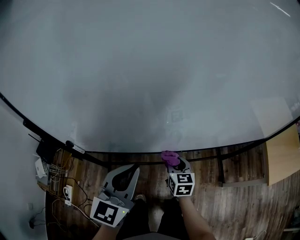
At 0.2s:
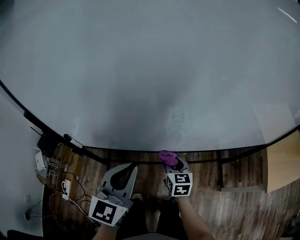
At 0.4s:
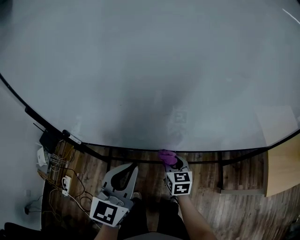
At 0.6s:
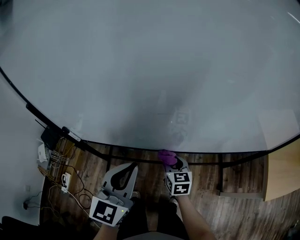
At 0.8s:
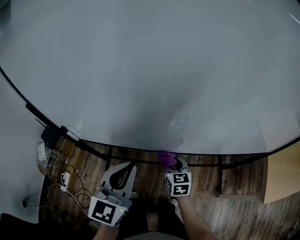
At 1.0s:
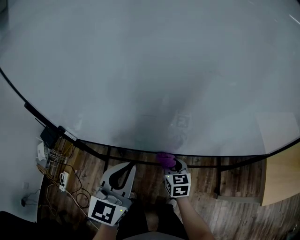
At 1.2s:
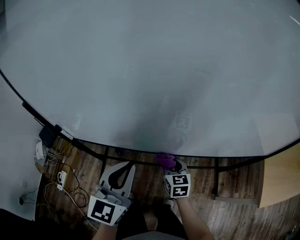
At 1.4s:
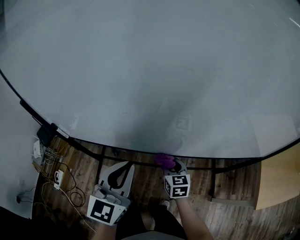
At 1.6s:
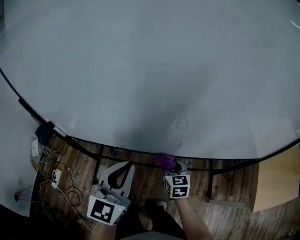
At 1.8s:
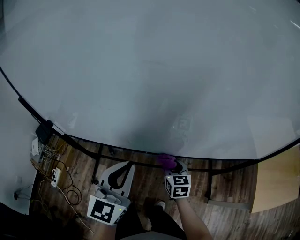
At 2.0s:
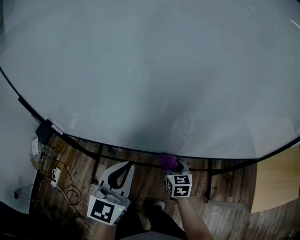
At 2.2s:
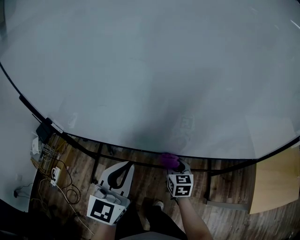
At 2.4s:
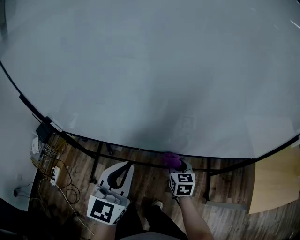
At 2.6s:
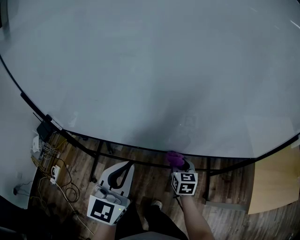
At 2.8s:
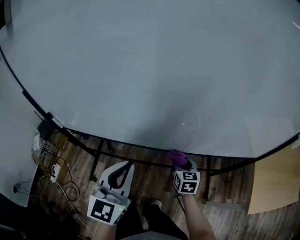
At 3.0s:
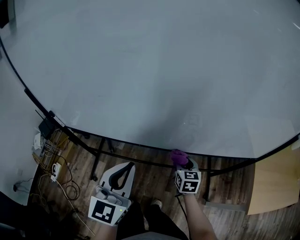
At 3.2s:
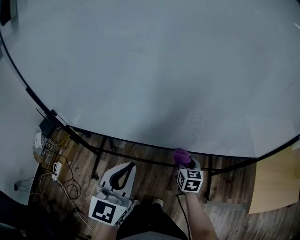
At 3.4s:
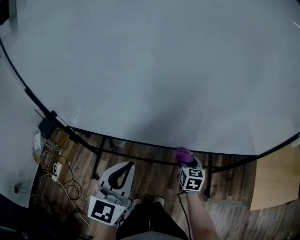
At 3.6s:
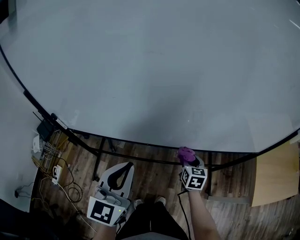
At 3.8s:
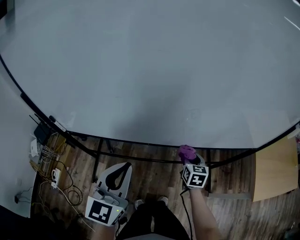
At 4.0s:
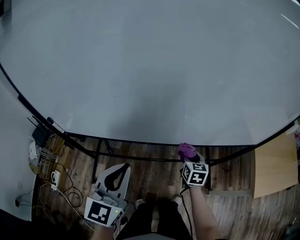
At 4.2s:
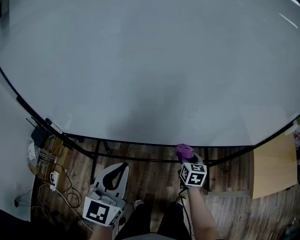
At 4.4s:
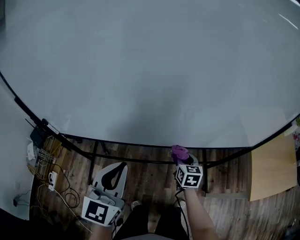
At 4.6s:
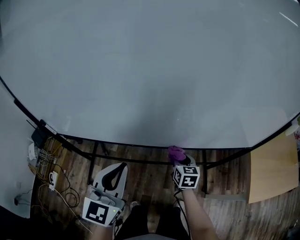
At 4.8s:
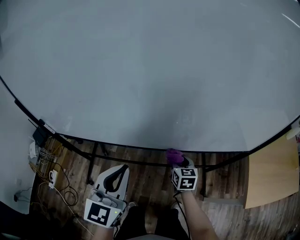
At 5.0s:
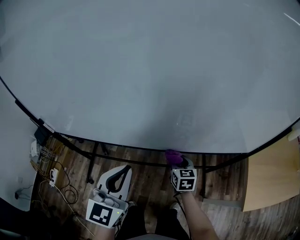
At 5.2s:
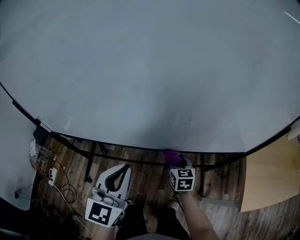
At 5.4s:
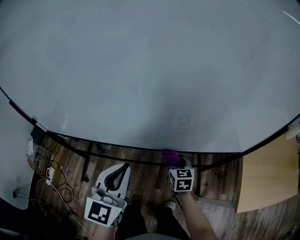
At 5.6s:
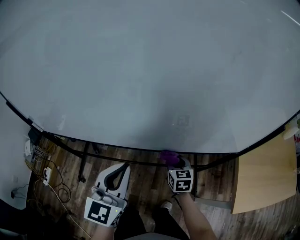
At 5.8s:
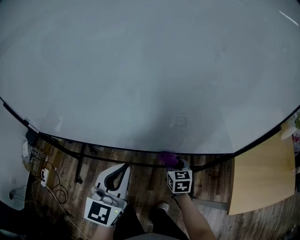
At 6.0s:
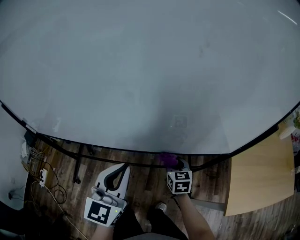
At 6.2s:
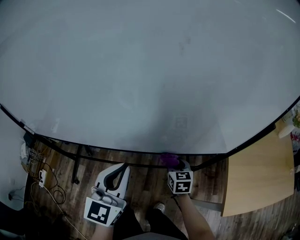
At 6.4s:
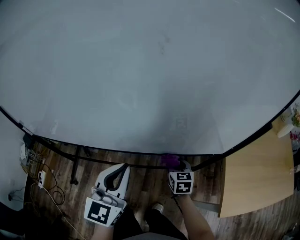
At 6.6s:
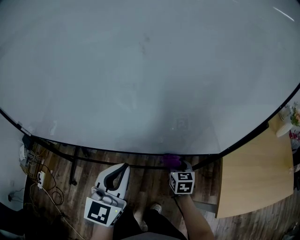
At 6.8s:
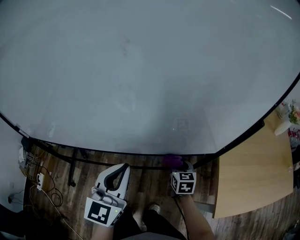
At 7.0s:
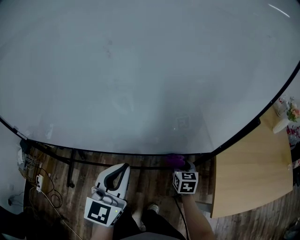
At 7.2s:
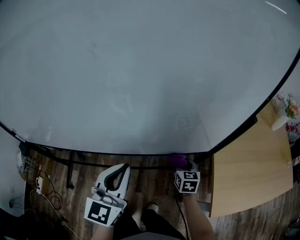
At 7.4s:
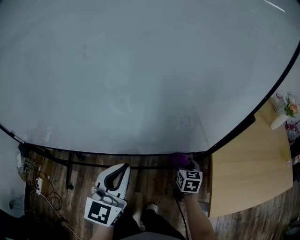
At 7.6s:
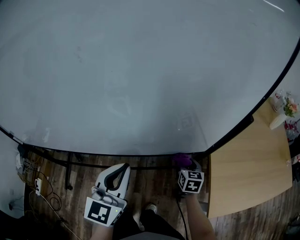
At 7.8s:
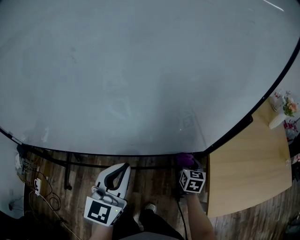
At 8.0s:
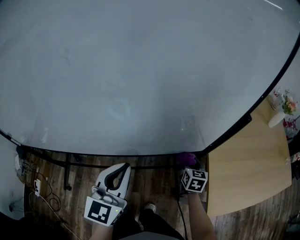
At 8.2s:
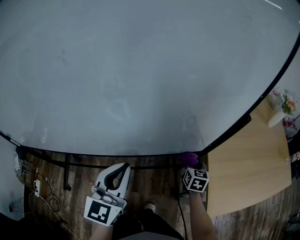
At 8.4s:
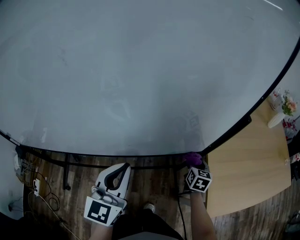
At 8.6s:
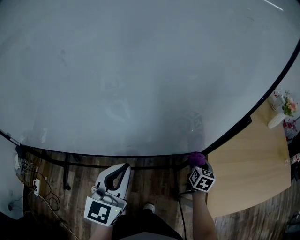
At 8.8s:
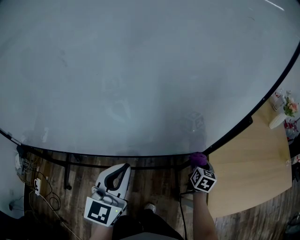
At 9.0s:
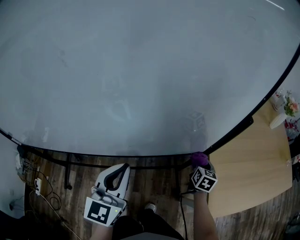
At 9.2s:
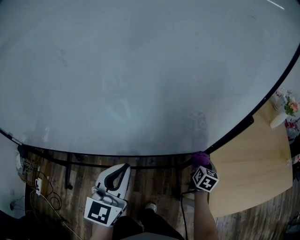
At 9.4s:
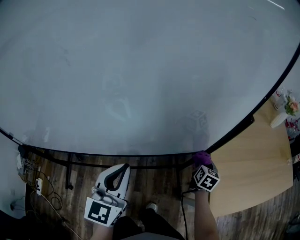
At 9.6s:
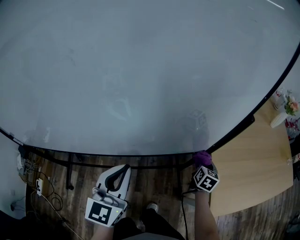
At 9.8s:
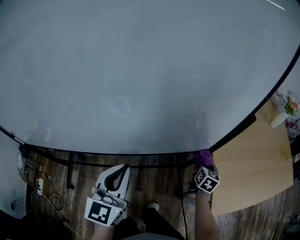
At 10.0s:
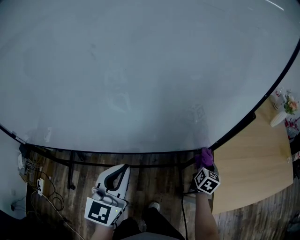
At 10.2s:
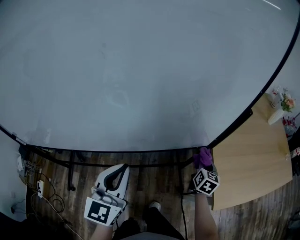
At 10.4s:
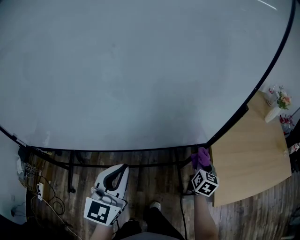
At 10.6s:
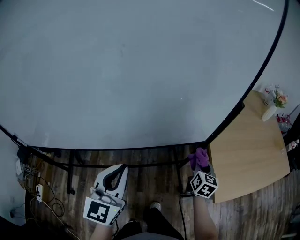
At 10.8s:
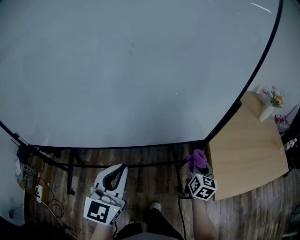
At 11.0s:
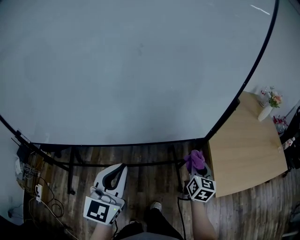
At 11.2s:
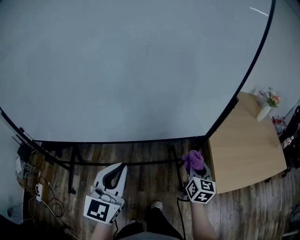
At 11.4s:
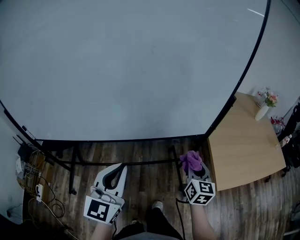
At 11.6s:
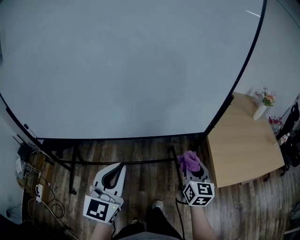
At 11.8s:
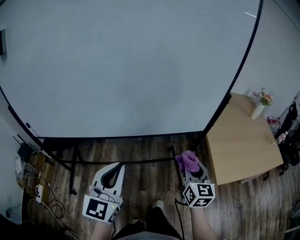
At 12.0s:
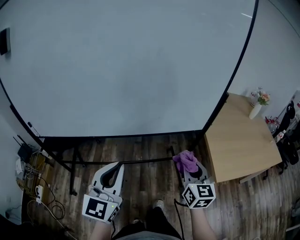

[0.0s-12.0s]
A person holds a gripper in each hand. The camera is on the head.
0.0s to 1.6s: The grippers both shift to the right by about 10 cm.
1.6s to 3.0s: The left gripper goes about 5 cm to the right, while the right gripper travels to the right by roughly 10 cm.
4.4s to 6.0s: The two grippers go about 20 cm to the right.
6.0s to 7.6s: The right gripper goes approximately 20 cm to the right. Meanwhile the left gripper shifts approximately 15 cm to the right.
7.6s to 9.0s: The right gripper moves to the right, approximately 10 cm.
9.0s to 10.4s: The right gripper is displaced backward and upward by some 10 cm. The left gripper is displaced backward by some 5 cm.
10.4s to 12.0s: The right gripper shifts roughly 30 cm backward, upward and to the left, and turns by approximately 30 degrees. Meanwhile the left gripper moves backward, roughly 20 cm.

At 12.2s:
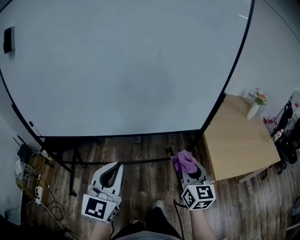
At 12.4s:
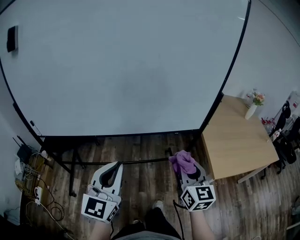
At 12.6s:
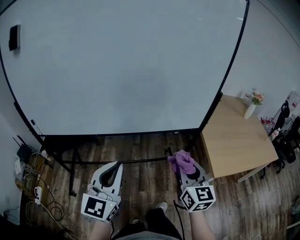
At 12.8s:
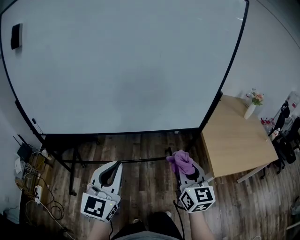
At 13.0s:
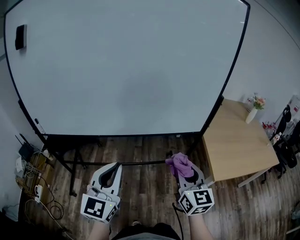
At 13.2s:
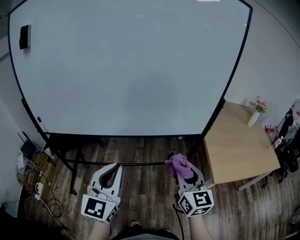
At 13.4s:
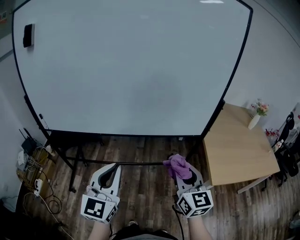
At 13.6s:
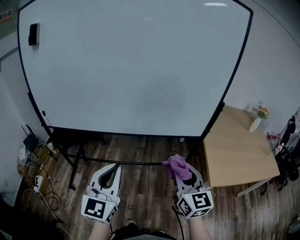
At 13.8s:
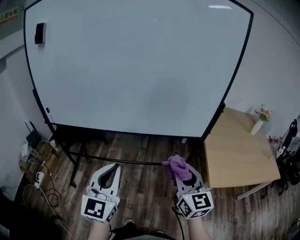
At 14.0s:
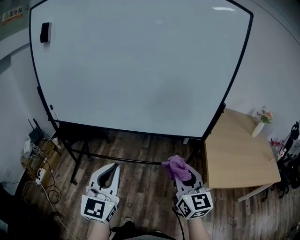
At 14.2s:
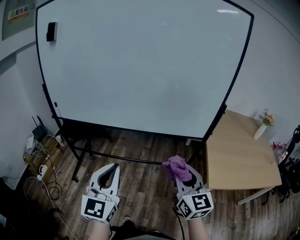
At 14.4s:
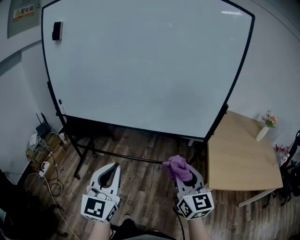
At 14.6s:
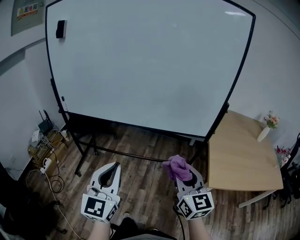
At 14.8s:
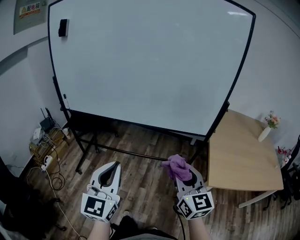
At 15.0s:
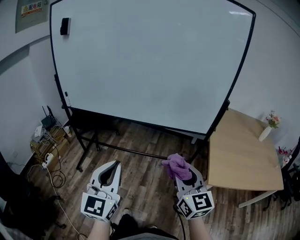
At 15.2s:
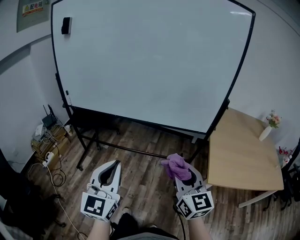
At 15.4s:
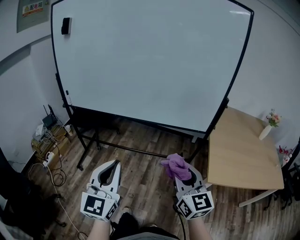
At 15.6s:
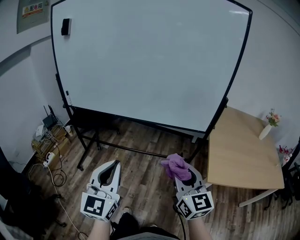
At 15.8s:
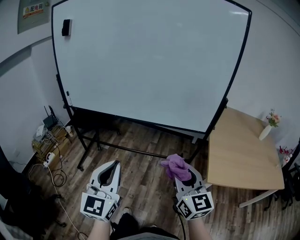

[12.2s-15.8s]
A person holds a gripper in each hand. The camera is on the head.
12.2s to 14.0s: The left gripper shifts about 10 cm backward. Meanwhile the right gripper is displaced backward and upward by approximately 10 cm.
14.0s to 15.8s: The two grippers go about 10 cm backward.

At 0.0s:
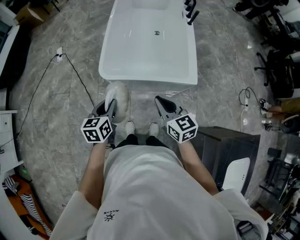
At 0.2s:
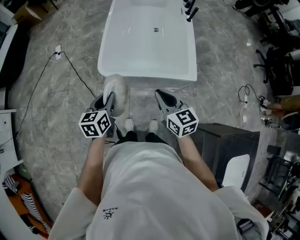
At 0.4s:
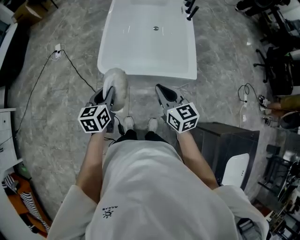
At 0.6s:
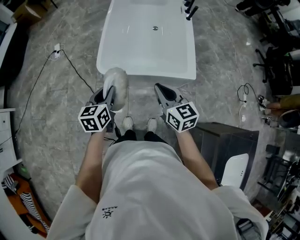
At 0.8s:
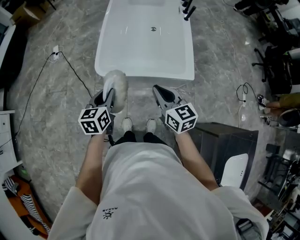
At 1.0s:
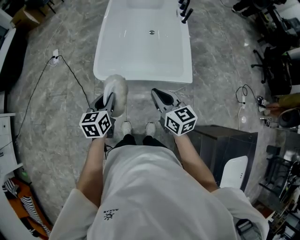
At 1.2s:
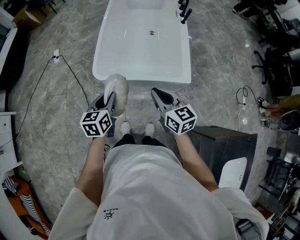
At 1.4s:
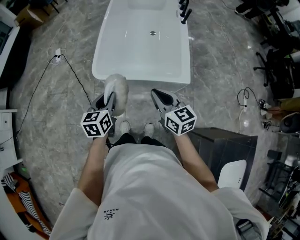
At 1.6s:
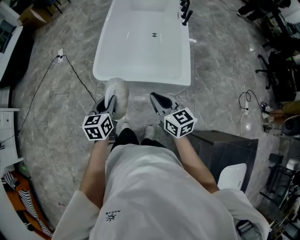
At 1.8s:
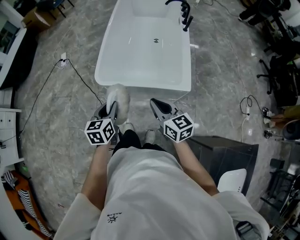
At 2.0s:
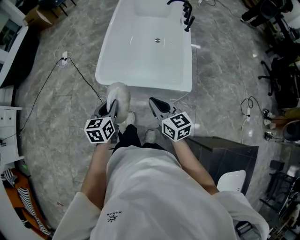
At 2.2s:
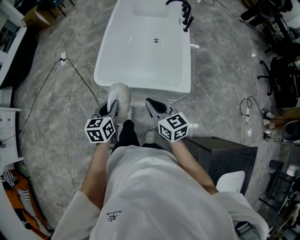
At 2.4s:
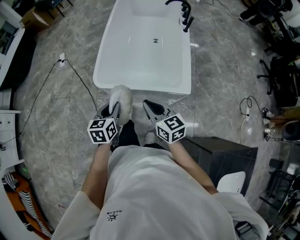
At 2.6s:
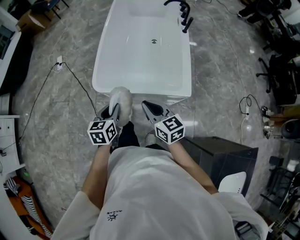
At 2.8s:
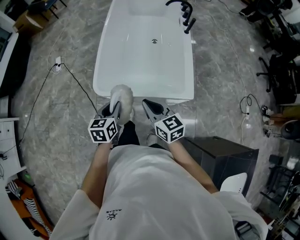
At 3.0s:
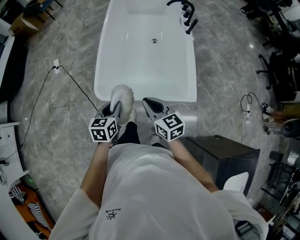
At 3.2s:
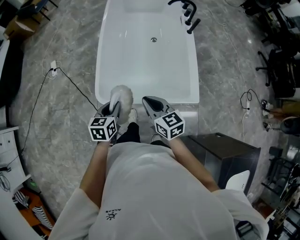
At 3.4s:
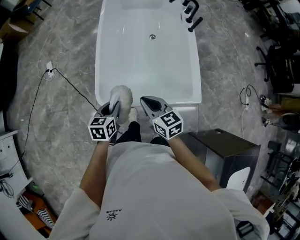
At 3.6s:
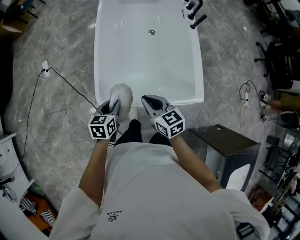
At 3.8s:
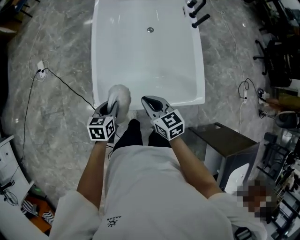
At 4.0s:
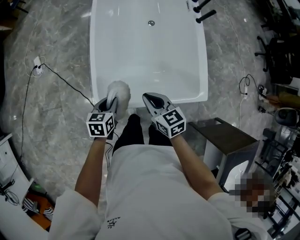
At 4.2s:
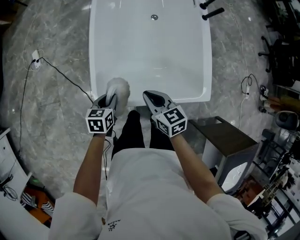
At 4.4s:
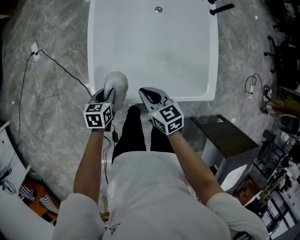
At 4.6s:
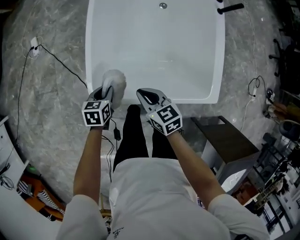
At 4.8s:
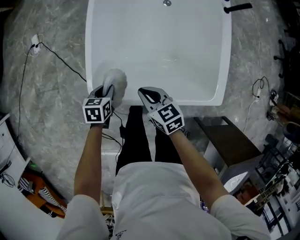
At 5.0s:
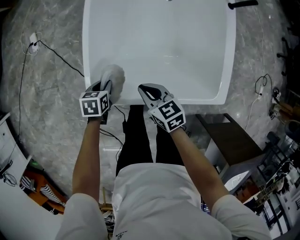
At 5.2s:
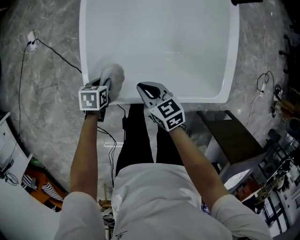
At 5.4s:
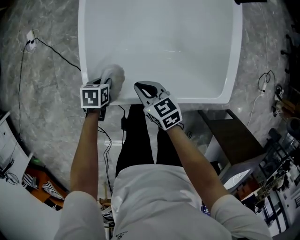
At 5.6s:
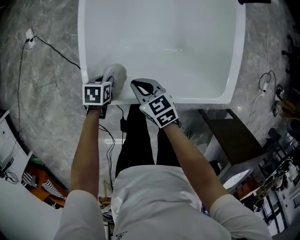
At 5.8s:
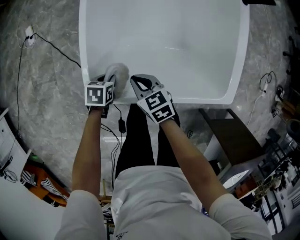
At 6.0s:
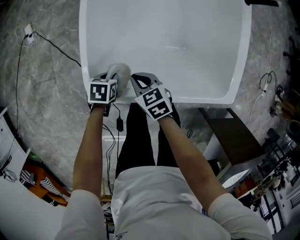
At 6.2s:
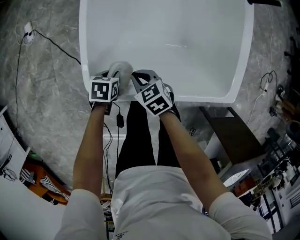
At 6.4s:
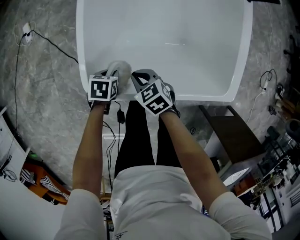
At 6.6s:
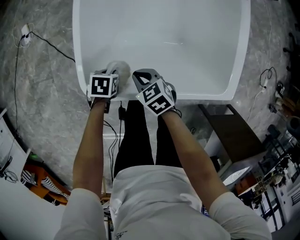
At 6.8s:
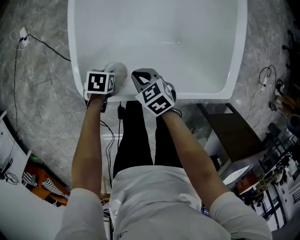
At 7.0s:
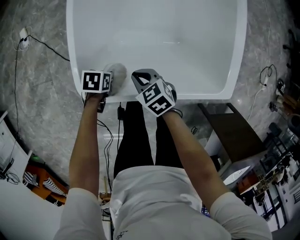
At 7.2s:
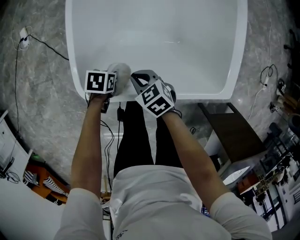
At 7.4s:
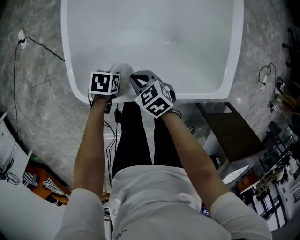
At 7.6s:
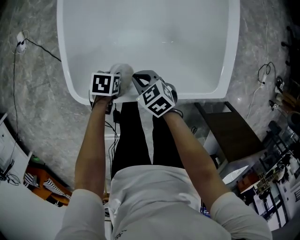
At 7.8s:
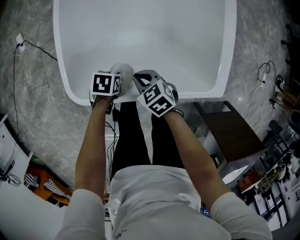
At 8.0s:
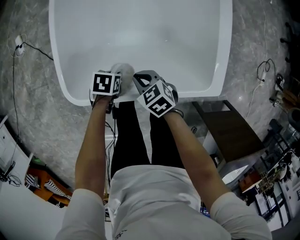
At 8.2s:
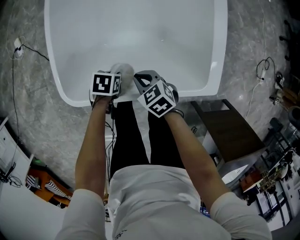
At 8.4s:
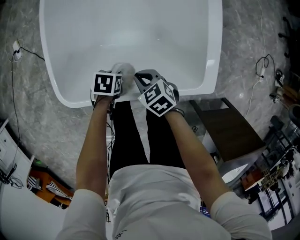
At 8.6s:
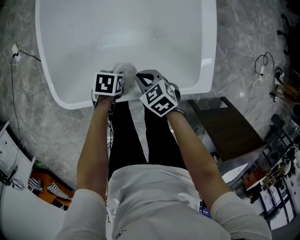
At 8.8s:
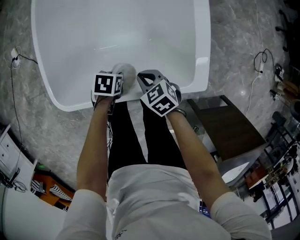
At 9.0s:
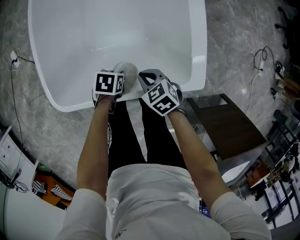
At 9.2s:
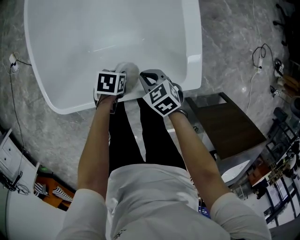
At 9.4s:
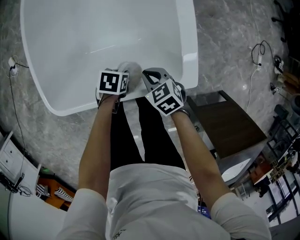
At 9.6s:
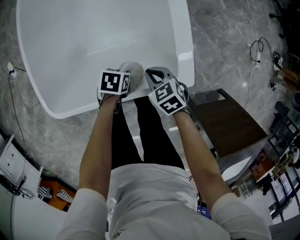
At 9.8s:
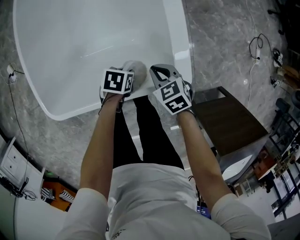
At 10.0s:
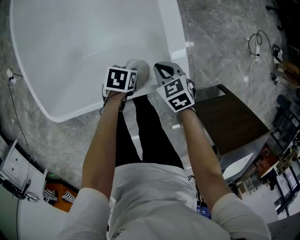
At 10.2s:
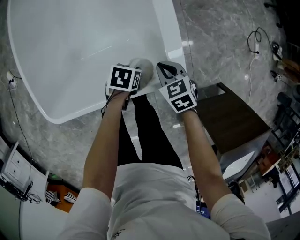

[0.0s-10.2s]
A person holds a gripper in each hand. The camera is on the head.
0.0s to 1.4s: The right gripper shifts by about 5 cm.
1.4s to 3.0s: The right gripper moves some 15 cm.
3.0s to 4.4s: The right gripper shifts about 15 cm downward.
4.4s to 5.8s: The right gripper is displaced downward by some 15 cm.
7.2s to 8.8s: The right gripper shifts by some 20 cm.
8.8s to 10.2s: The right gripper changes place by about 20 cm.
